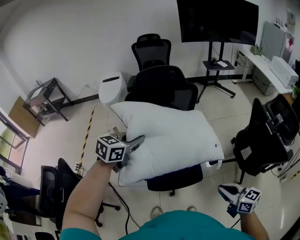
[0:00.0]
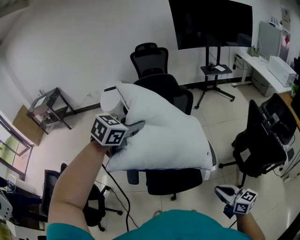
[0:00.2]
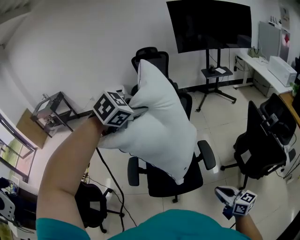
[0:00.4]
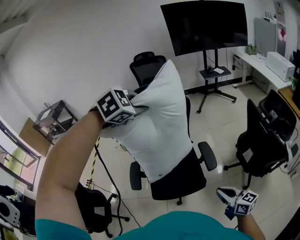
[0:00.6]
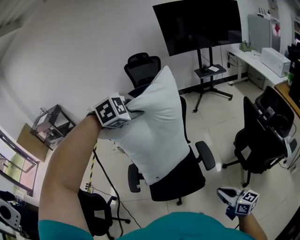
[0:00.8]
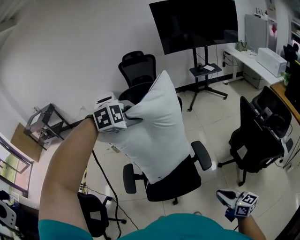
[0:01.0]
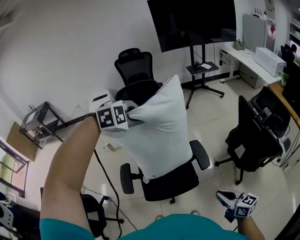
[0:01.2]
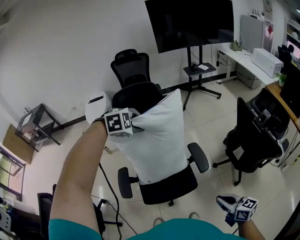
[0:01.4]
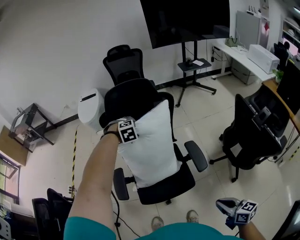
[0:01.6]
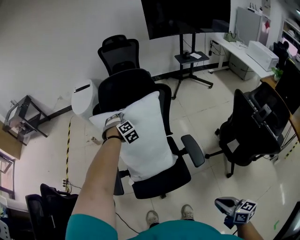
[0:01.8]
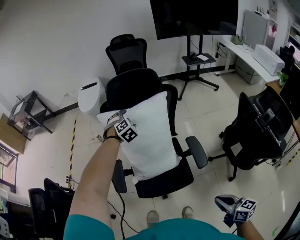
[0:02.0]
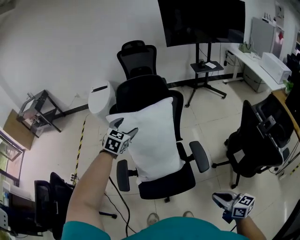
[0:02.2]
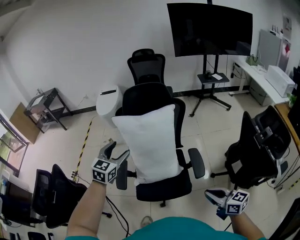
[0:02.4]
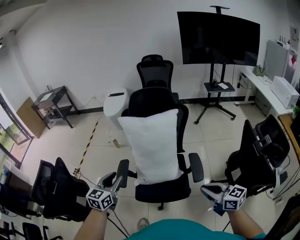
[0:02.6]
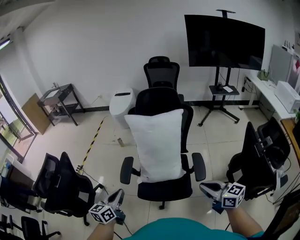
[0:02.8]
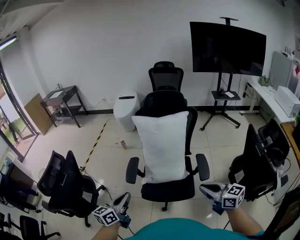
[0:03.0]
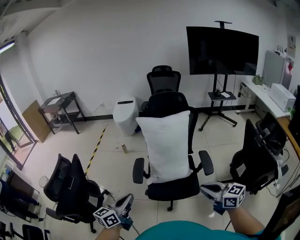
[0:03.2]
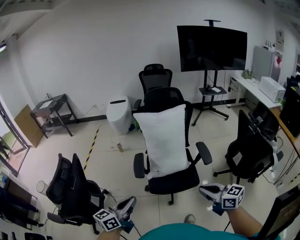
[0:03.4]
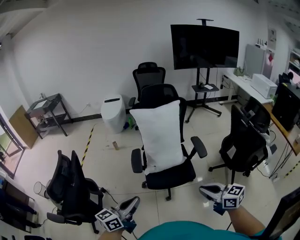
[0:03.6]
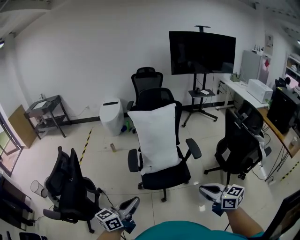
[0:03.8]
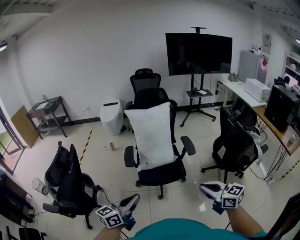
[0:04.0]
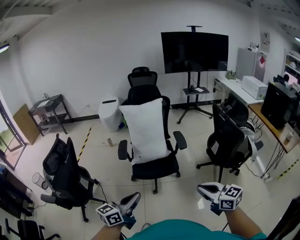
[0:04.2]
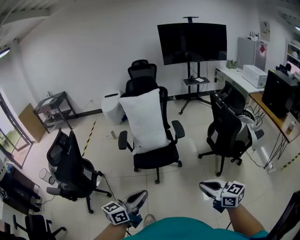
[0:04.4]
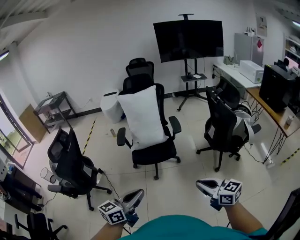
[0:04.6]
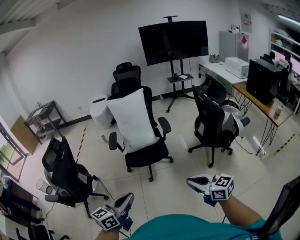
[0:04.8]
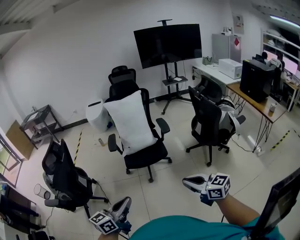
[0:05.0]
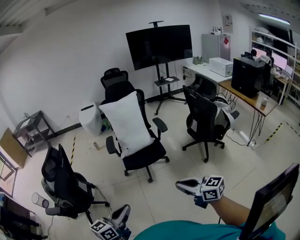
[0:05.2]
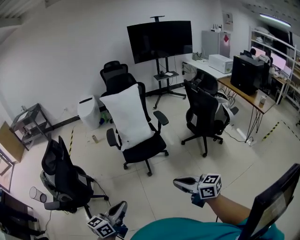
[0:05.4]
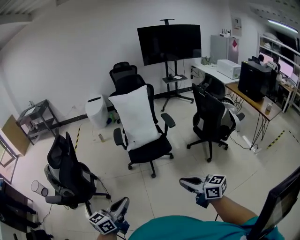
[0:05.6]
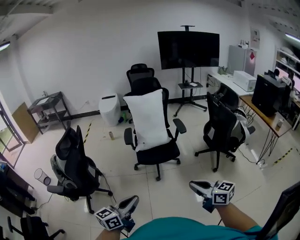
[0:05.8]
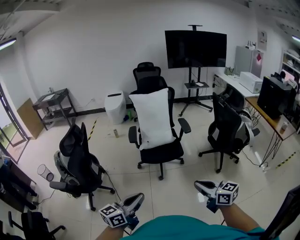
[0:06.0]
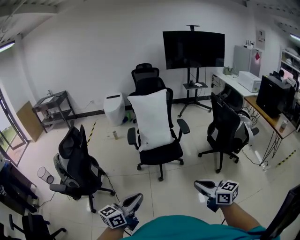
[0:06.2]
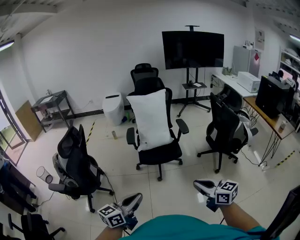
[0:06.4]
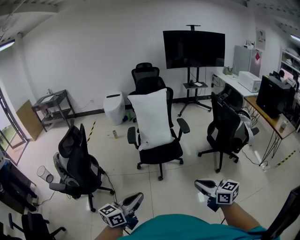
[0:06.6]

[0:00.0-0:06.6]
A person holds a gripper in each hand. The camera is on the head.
0:00.0 to 0:01.6: The right gripper moves downward, about 5 cm; the left gripper is displaced forward and downward by some 25 cm, tips its fingers downward by roughly 40 degrees, and opens.
0:01.6 to 0:03.2: The left gripper shifts roughly 50 cm backward and to the left, tips its fingers upward by some 60 degrees, and closes, while the right gripper goes some 15 cm upward and to the left, and swivels about 30 degrees.
0:03.2 to 0:05.0: The two grippers travel together, backward, some 40 cm.
0:05.0 to 0:06.6: The grippers both shift to the left by some 5 cm.

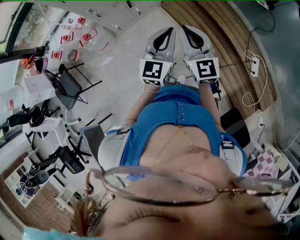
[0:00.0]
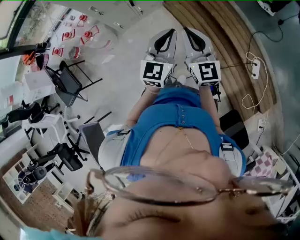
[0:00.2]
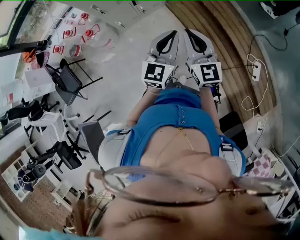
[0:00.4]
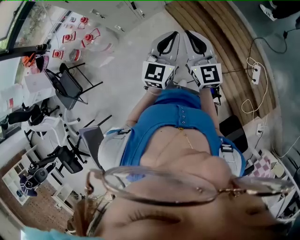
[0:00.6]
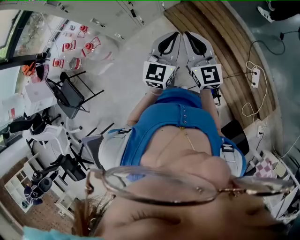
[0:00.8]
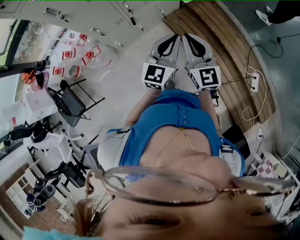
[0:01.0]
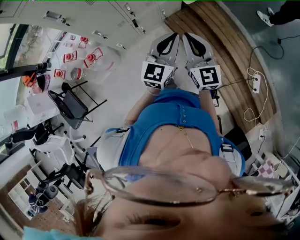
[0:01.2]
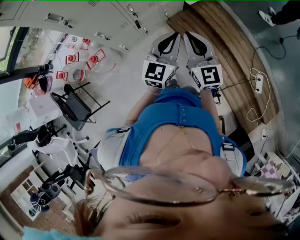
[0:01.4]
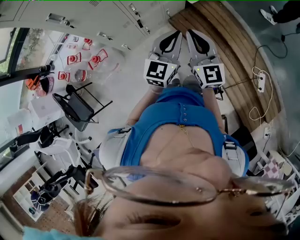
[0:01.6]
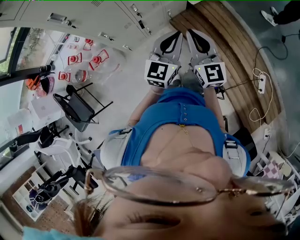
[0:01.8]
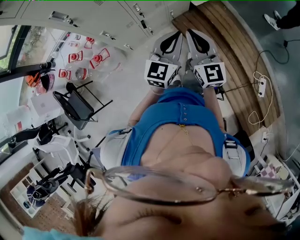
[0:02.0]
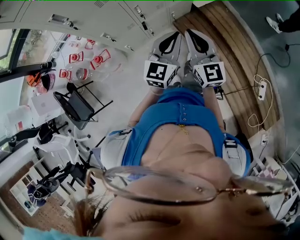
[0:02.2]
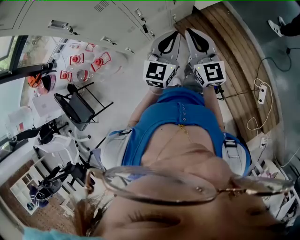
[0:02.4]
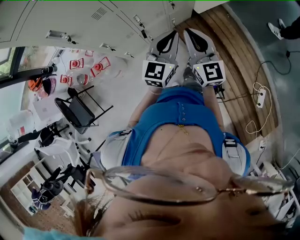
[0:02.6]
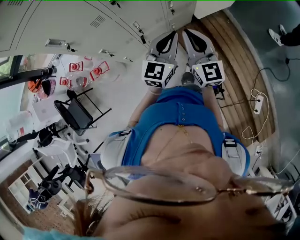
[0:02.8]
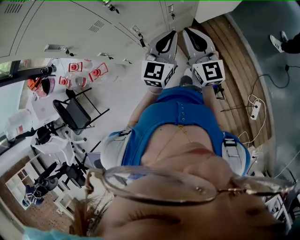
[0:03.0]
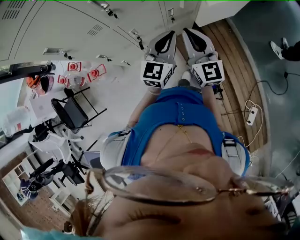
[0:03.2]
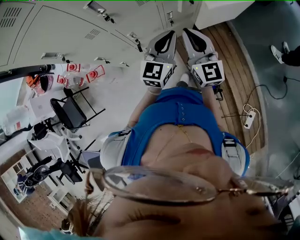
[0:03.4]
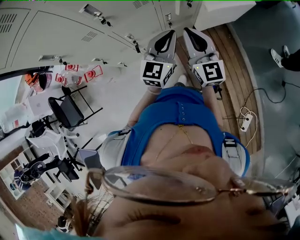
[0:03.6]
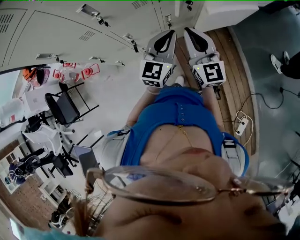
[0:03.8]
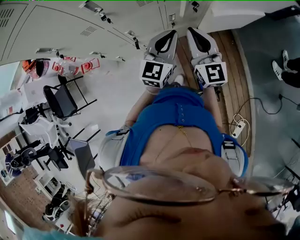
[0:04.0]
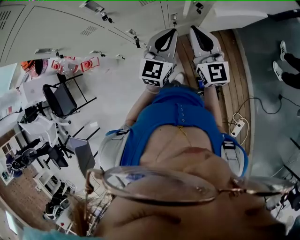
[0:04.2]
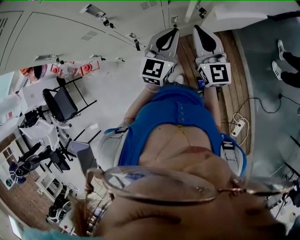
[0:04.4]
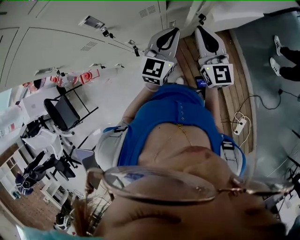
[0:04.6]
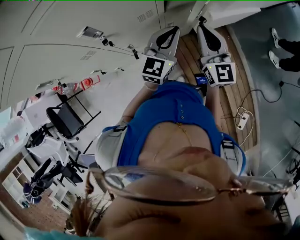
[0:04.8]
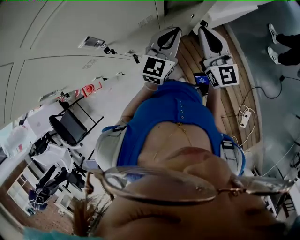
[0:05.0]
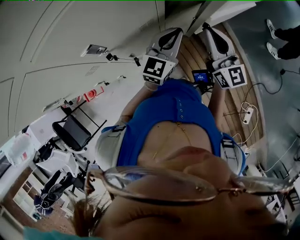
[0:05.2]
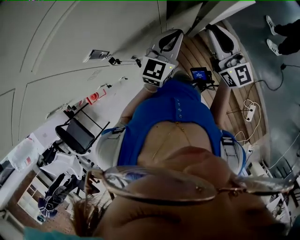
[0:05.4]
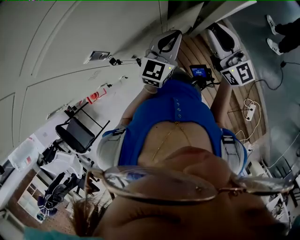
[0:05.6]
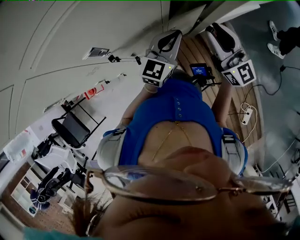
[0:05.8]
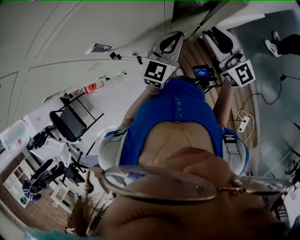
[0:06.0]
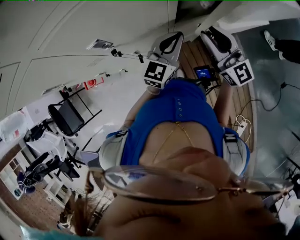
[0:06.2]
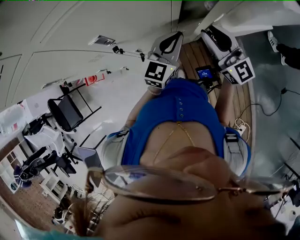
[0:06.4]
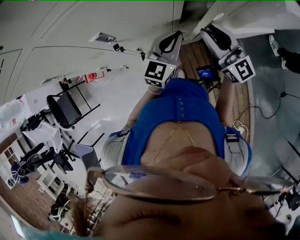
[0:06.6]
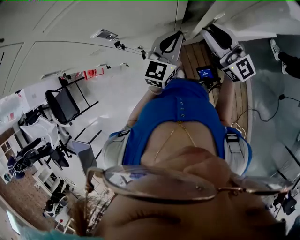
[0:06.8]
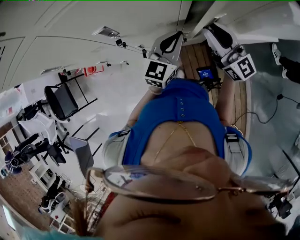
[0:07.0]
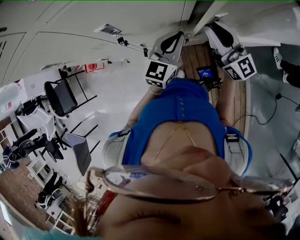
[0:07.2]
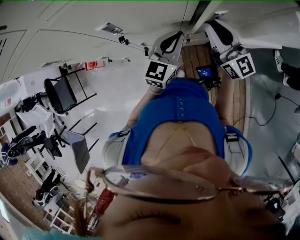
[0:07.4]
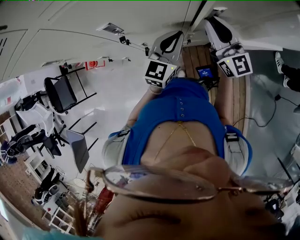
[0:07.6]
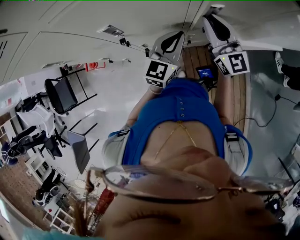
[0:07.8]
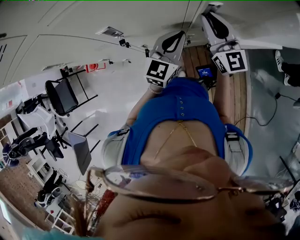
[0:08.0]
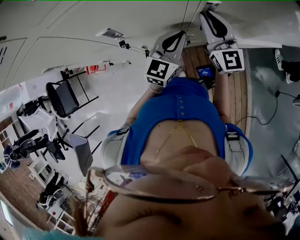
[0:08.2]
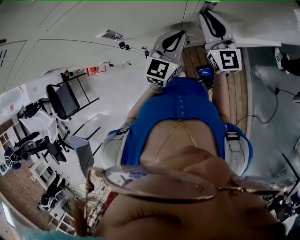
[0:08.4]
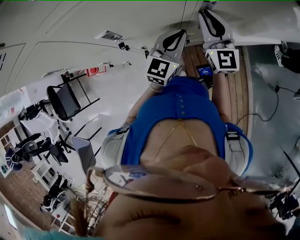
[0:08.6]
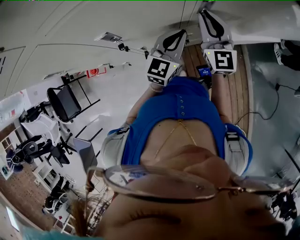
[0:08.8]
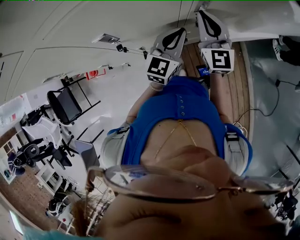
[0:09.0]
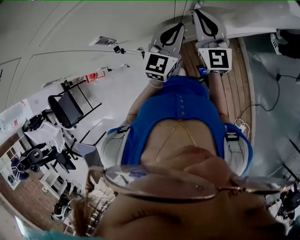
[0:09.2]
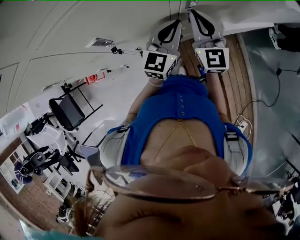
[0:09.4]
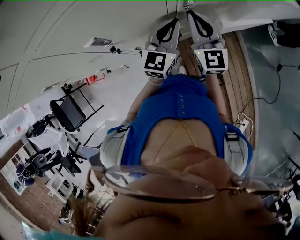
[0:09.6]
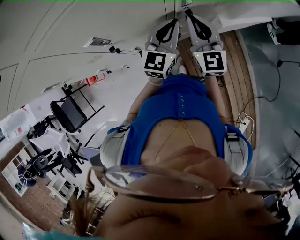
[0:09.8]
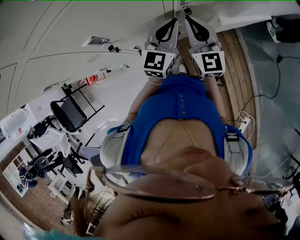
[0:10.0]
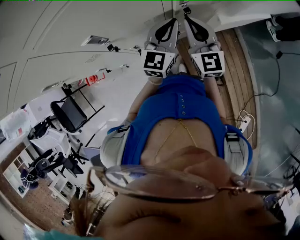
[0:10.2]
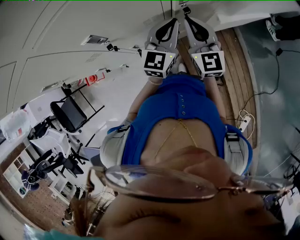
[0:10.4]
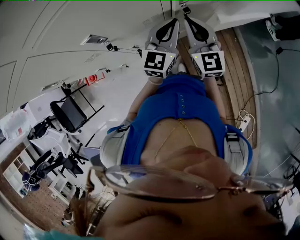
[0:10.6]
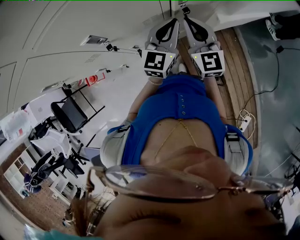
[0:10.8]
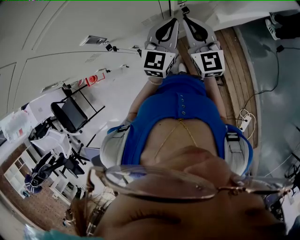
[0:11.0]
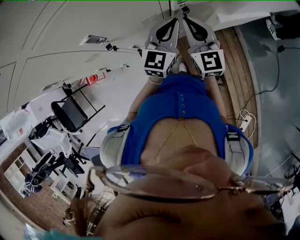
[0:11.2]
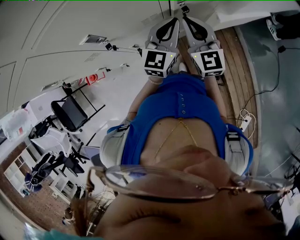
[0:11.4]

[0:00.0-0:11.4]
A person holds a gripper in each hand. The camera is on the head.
0:00.0 to 0:01.4: Both grippers move forward and to the left, some 20 cm.
0:01.4 to 0:02.8: The two grippers go about 20 cm forward.
0:02.8 to 0:04.2: The right gripper shifts some 20 cm forward and to the right. The left gripper travels forward by roughly 15 cm.
0:04.2 to 0:05.6: The two grippers go some 10 cm forward. The left gripper turns by some 20 degrees, while the right gripper opens.
0:05.6 to 0:07.2: The left gripper turns by some 20 degrees, while the right gripper ends up approximately 5 cm from where it was, and swivels some 30 degrees.
0:07.2 to 0:08.6: The right gripper heads forward, covering approximately 5 cm, and changes its angle by about 30 degrees.
0:08.6 to 0:10.0: The right gripper shifts about 5 cm backward.
0:10.0 to 0:11.4: The grippers stay close to where they were, moving slightly.

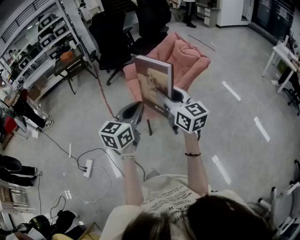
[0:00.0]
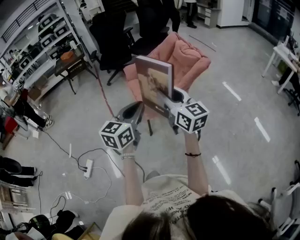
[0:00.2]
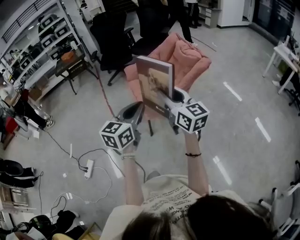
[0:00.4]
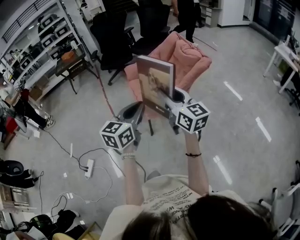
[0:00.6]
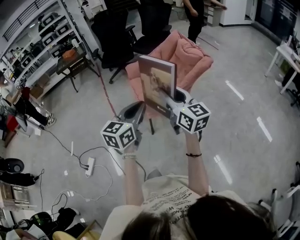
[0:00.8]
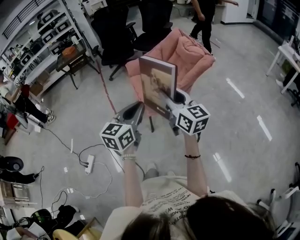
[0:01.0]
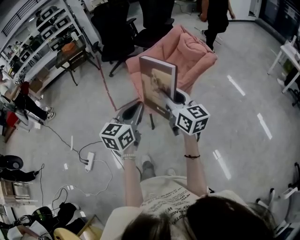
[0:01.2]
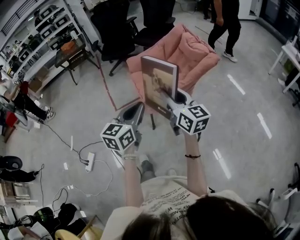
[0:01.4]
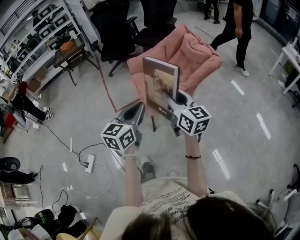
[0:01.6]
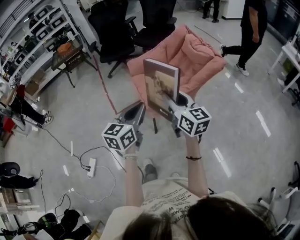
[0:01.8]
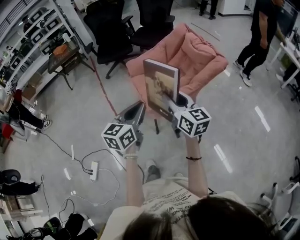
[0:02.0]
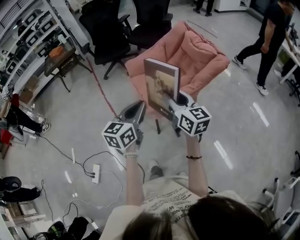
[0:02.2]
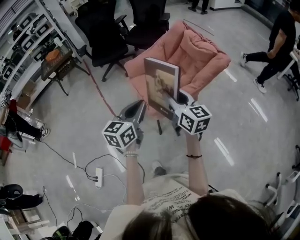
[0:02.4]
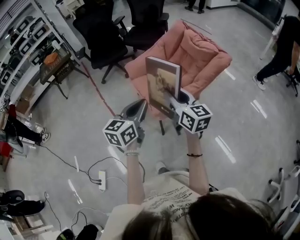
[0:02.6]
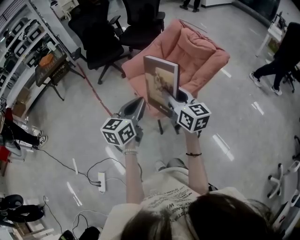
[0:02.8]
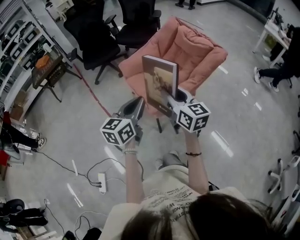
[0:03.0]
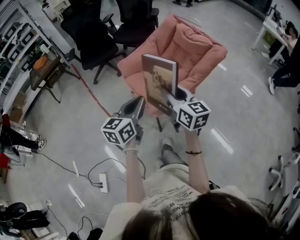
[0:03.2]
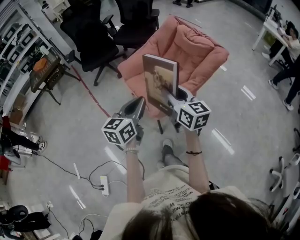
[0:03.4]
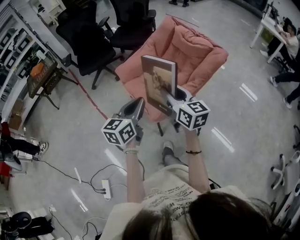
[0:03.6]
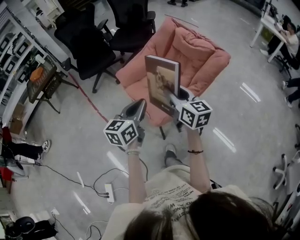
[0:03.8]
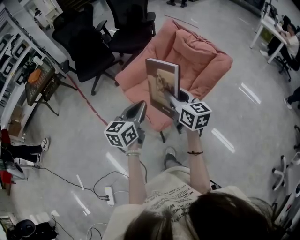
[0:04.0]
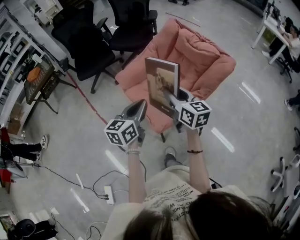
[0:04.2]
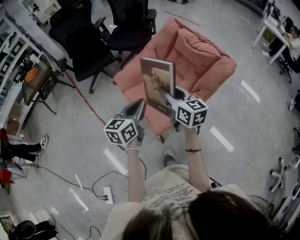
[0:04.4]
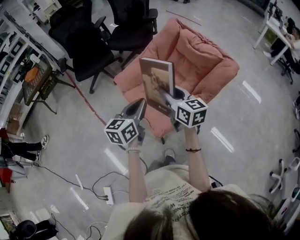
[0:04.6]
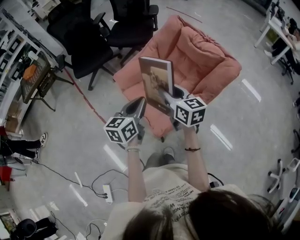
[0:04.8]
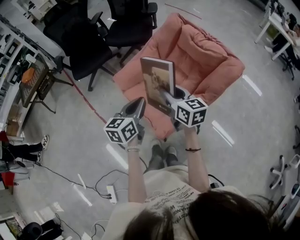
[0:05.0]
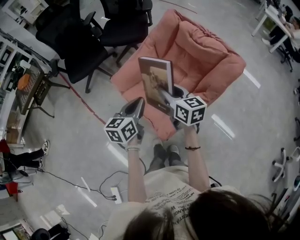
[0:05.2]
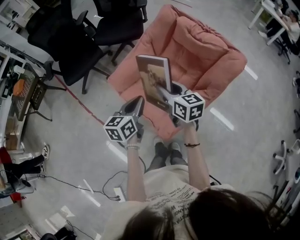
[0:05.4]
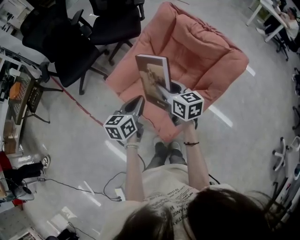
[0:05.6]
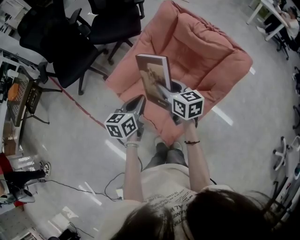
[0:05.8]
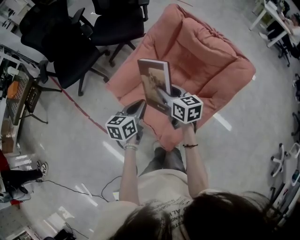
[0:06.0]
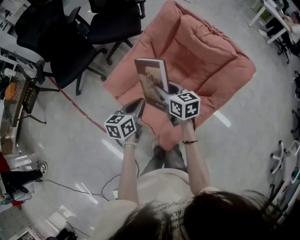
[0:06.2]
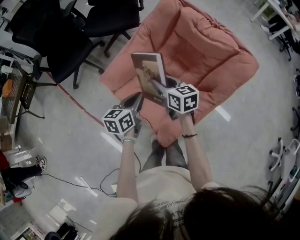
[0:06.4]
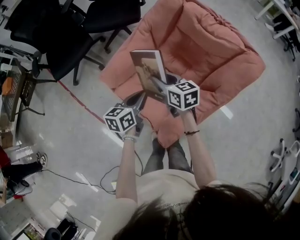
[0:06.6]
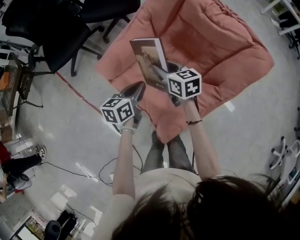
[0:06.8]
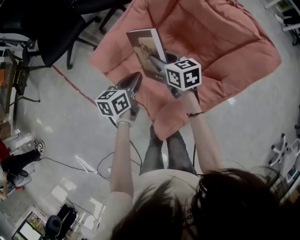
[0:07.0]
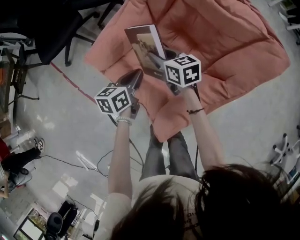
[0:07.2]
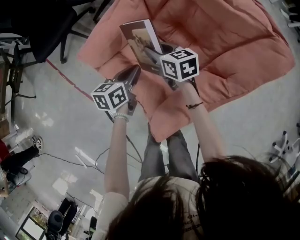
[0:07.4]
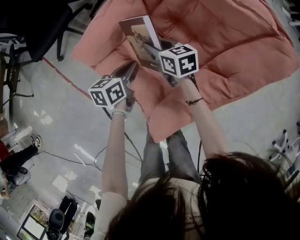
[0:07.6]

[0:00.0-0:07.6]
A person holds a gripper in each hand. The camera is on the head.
0:00.0 to 0:01.6: Both grippers travel together forward, about 10 cm.
0:01.6 to 0:03.0: Both grippers travel together to the left and forward, approximately 20 cm.
0:03.0 to 0:04.6: Both grippers travel together forward, some 25 cm.
0:04.6 to 0:06.0: The grippers both shift forward and downward by approximately 25 cm.
0:06.0 to 0:07.6: The grippers both shift downward and forward by some 30 cm.
